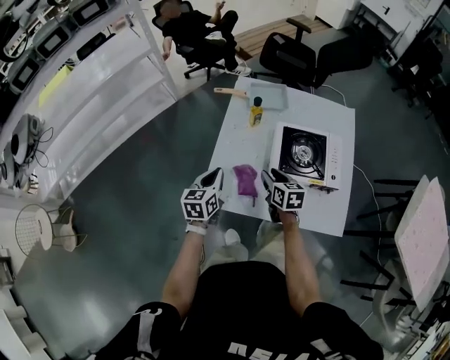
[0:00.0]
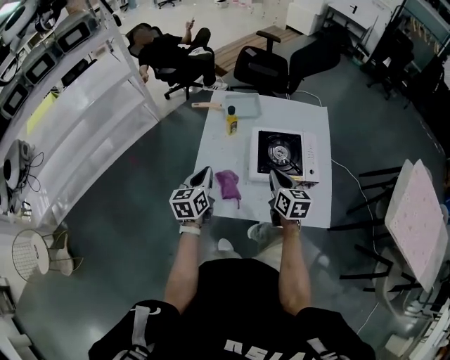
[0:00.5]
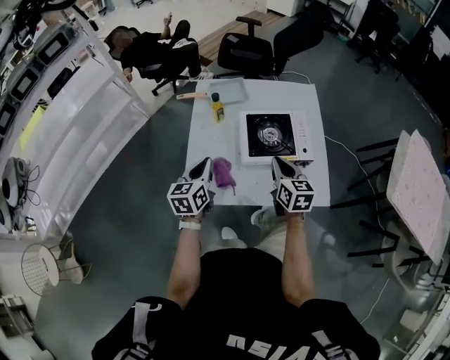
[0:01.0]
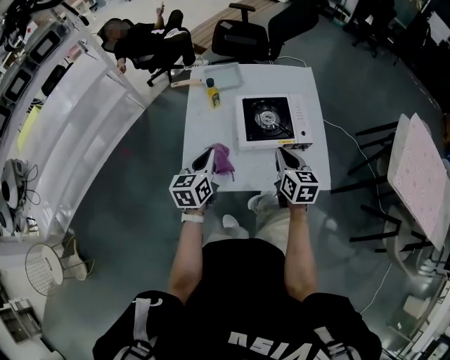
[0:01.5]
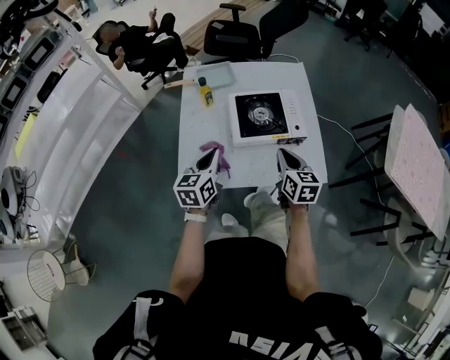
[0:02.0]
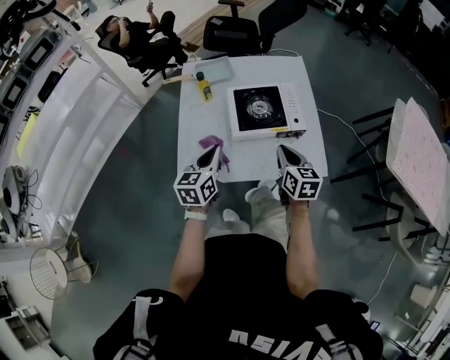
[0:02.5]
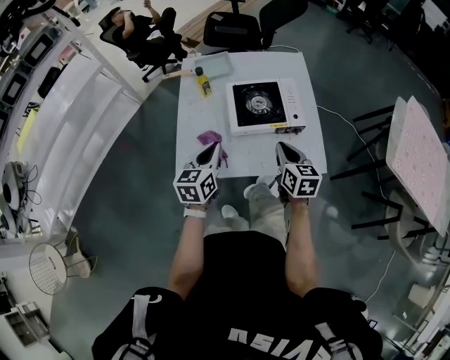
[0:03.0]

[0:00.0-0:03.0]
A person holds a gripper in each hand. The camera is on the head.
0:00.0 to 0:01.5: The right gripper moves to the right, upward and backward, roughly 20 cm, changes its angle by about 20 degrees, and closes its fingers. The left gripper heads to the right and upward, covering about 10 cm.
0:01.5 to 0:03.0: The left gripper heads to the right, covering some 5 cm. The right gripper shifts by about 5 cm.

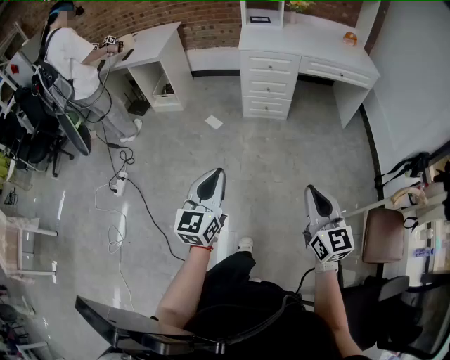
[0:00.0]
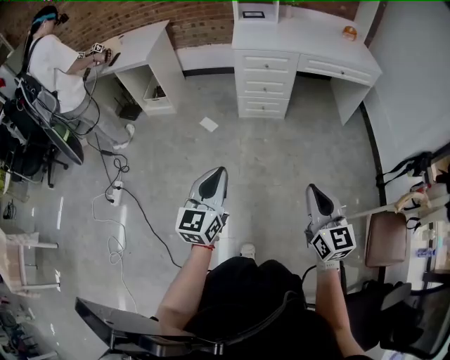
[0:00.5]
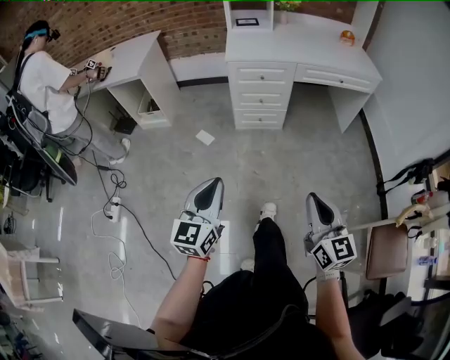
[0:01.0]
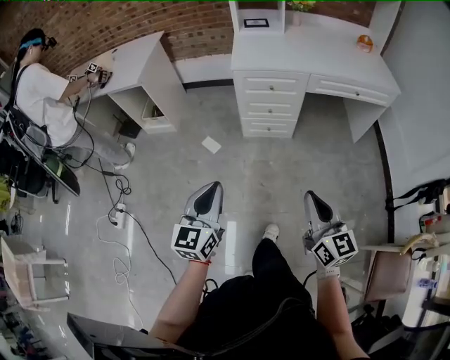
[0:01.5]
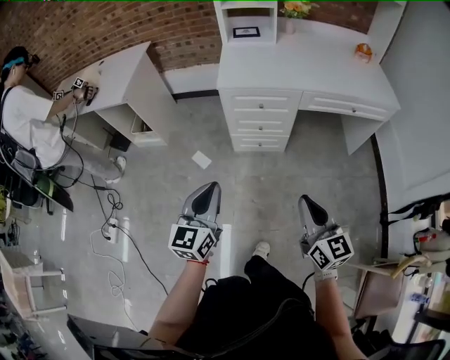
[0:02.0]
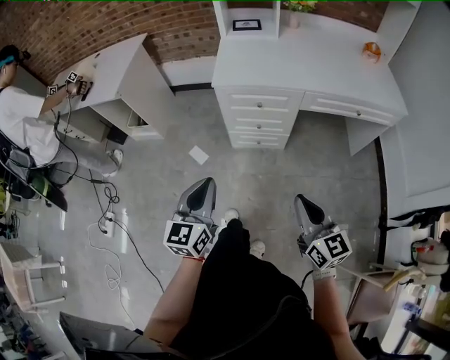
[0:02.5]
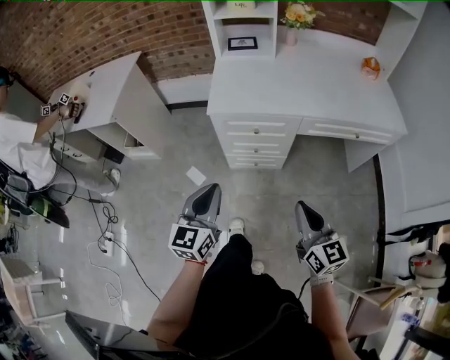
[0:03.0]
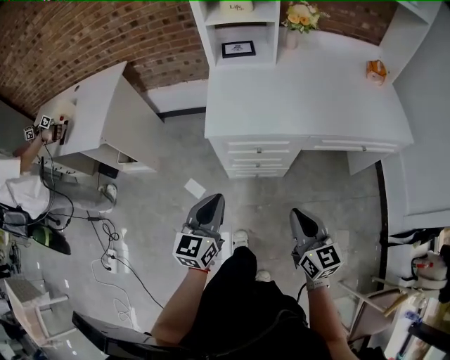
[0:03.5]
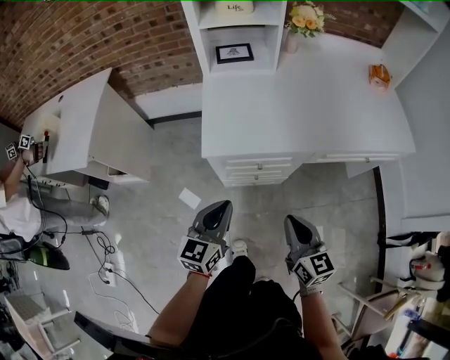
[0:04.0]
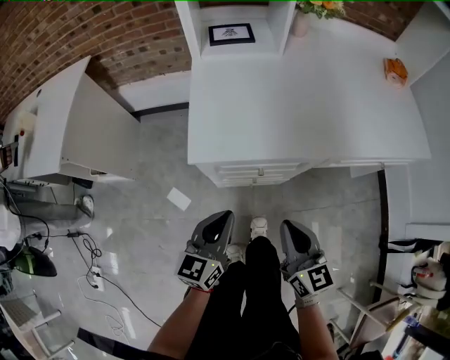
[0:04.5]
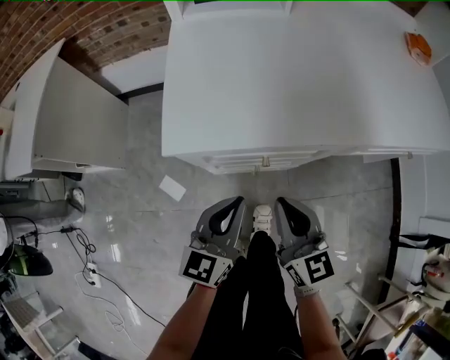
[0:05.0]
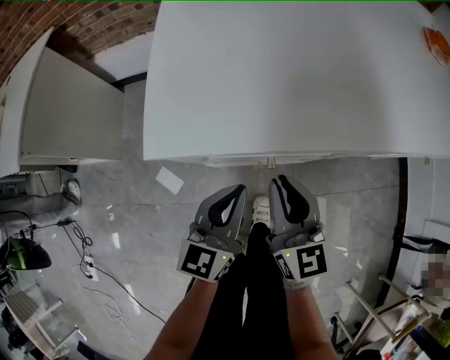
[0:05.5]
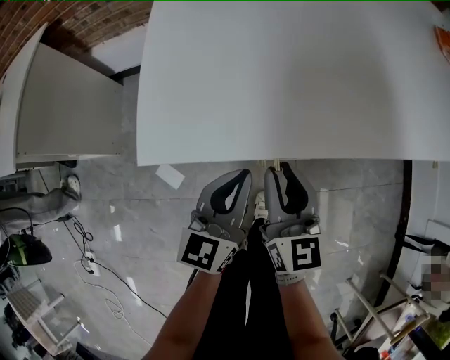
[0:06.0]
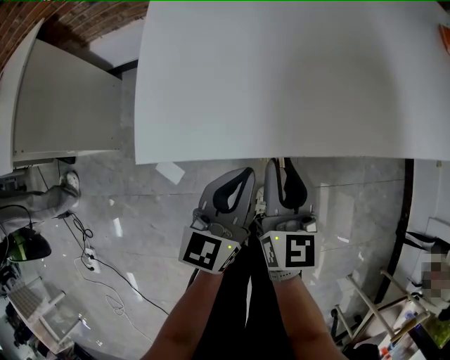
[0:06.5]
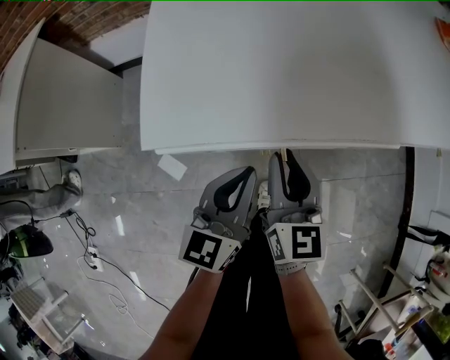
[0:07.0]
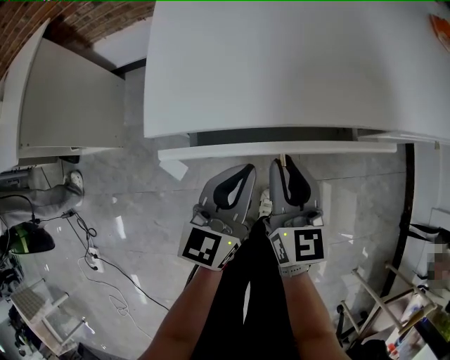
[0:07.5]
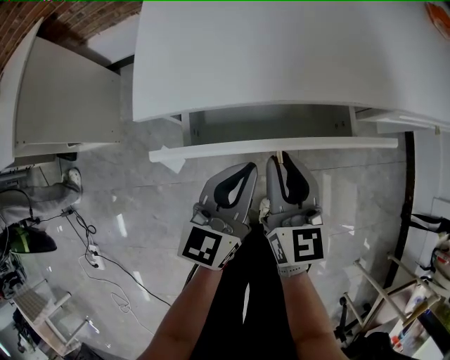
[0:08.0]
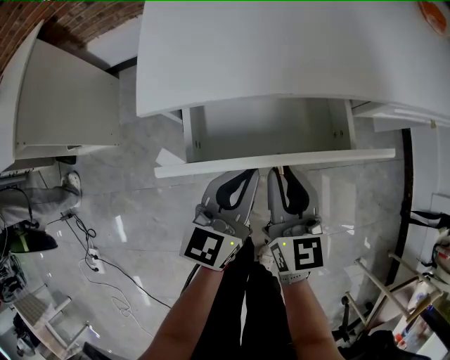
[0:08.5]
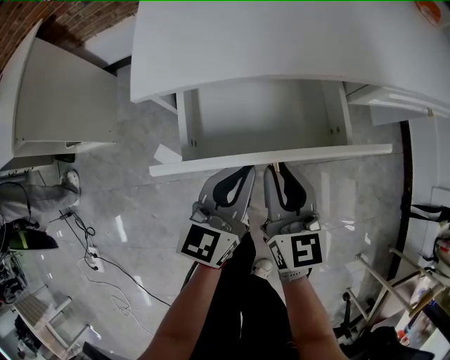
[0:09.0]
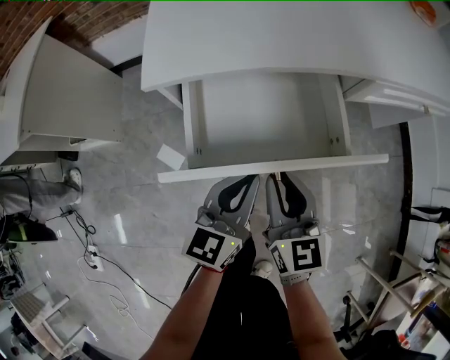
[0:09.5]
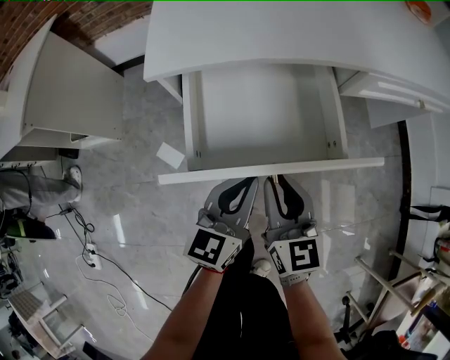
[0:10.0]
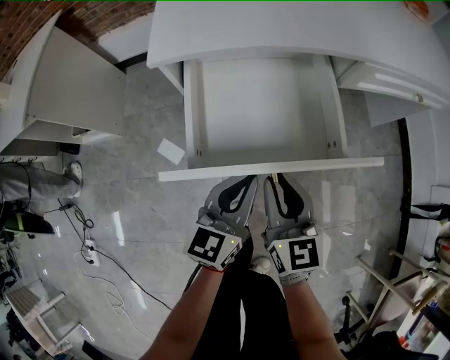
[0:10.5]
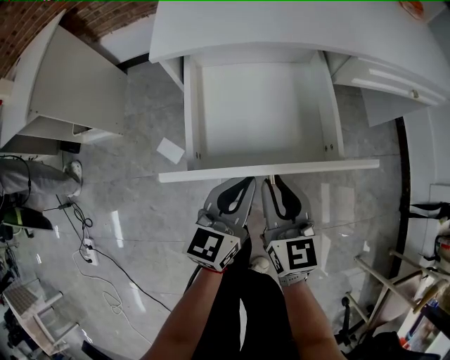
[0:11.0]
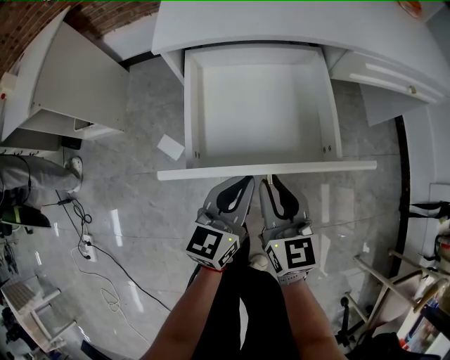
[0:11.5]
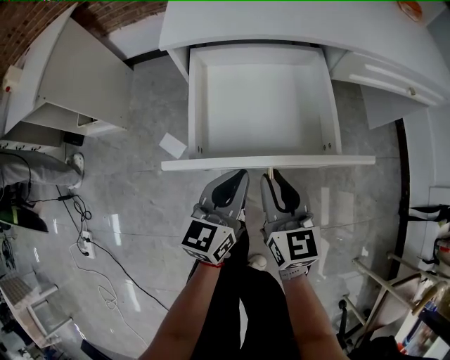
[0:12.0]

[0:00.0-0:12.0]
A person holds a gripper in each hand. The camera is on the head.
0:00.0 to 0:02.0: Both grippers are carried forward, approximately 40 cm.
0:02.0 to 0:04.0: The grippers both shift forward by roughly 30 cm.
0:04.0 to 0:06.0: The grippers both shift downward and forward by some 25 cm. The right gripper opens up.
0:06.0 to 0:08.0: The two grippers go some 5 cm backward.
0:08.0 to 0:10.0: The grippers both shift backward by roughly 10 cm.
0:10.0 to 0:12.0: The grippers both shift backward by some 5 cm.

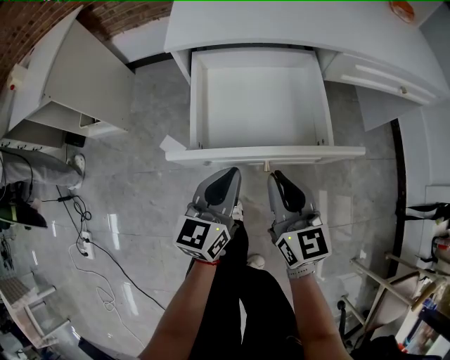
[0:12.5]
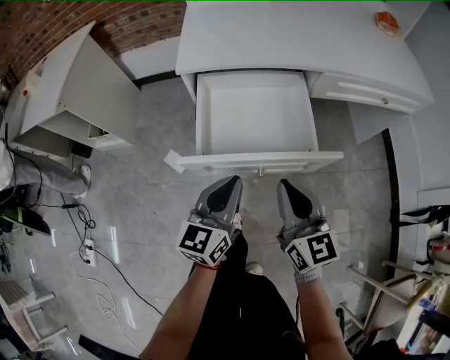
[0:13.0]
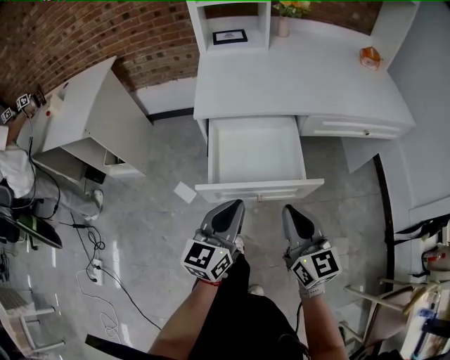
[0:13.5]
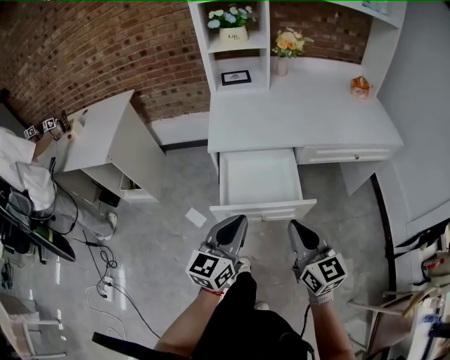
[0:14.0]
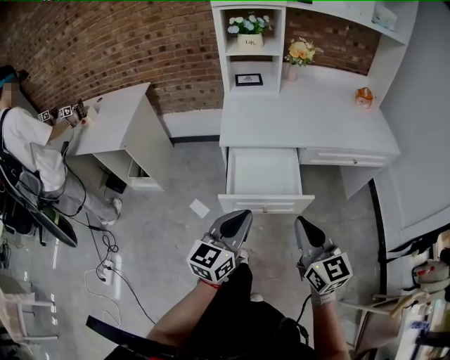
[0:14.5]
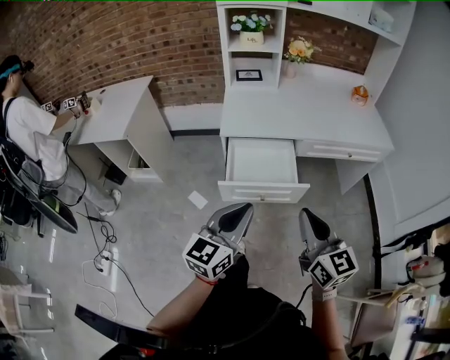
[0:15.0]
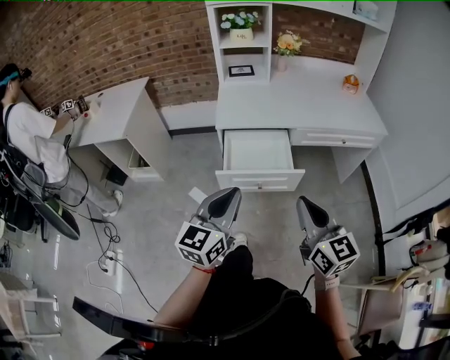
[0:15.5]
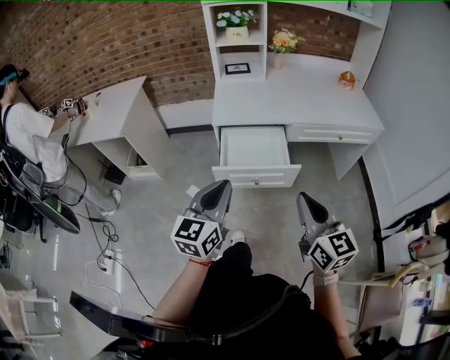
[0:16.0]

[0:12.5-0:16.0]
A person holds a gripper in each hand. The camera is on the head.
0:12.5 to 0:14.5: Both grippers travel together upward, roughly 30 cm.
0:14.5 to 0:16.0: The right gripper shifts roughly 10 cm backward. Meanwhile the left gripper goes approximately 10 cm backward and upward.

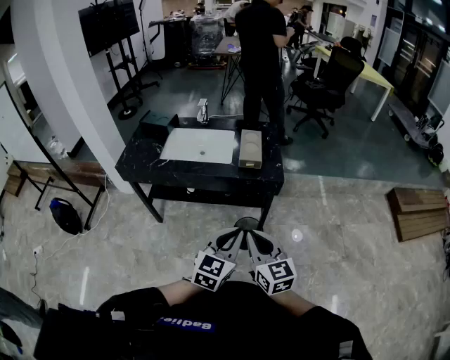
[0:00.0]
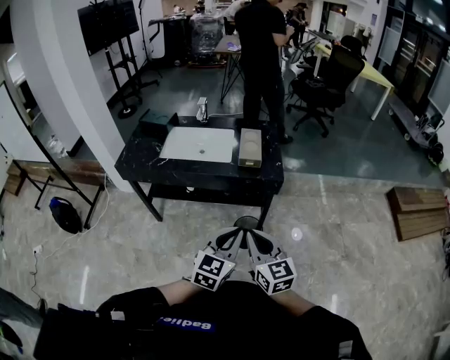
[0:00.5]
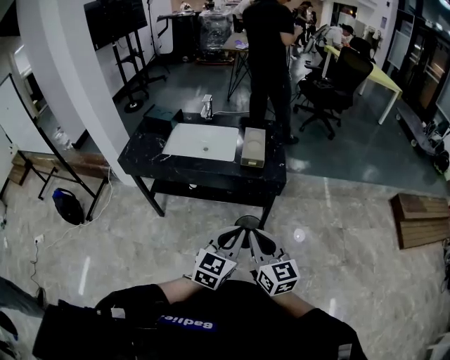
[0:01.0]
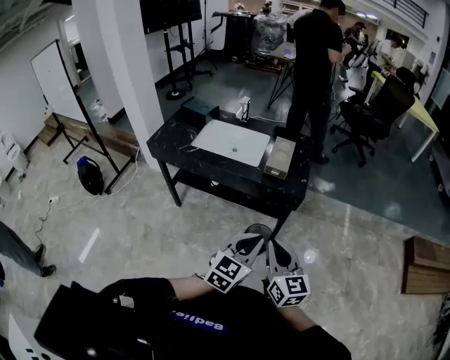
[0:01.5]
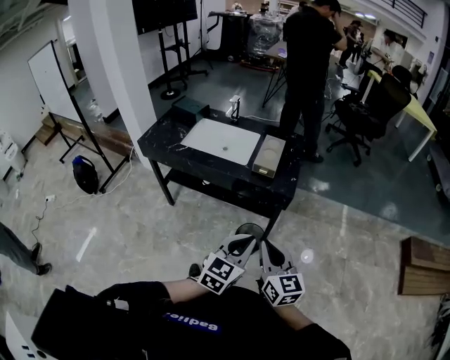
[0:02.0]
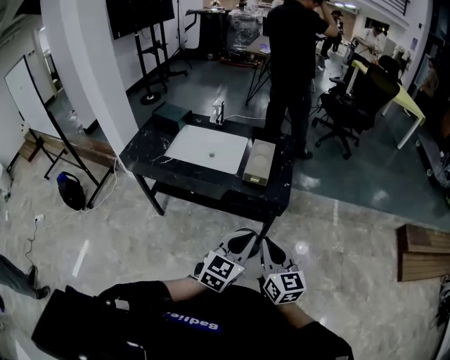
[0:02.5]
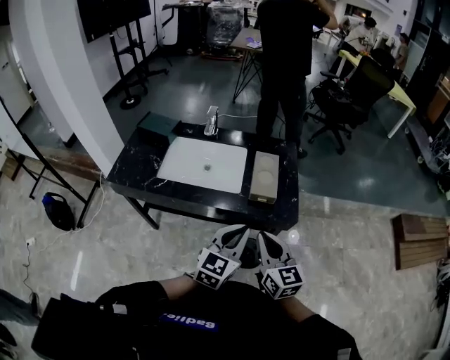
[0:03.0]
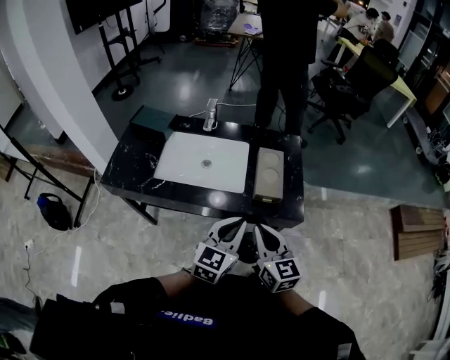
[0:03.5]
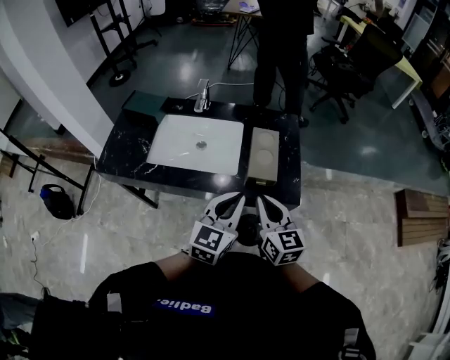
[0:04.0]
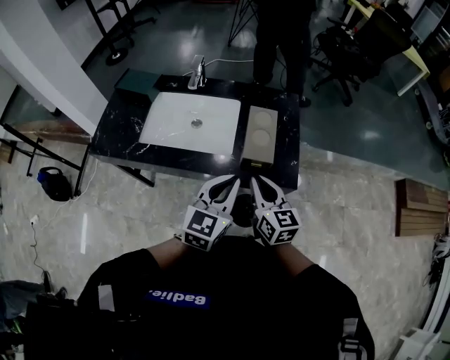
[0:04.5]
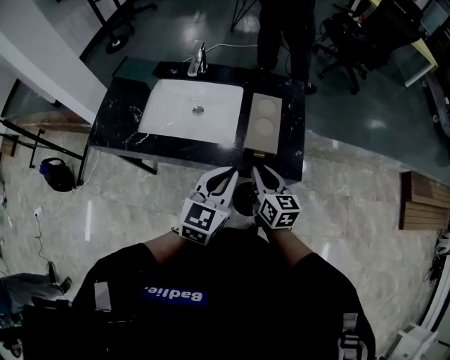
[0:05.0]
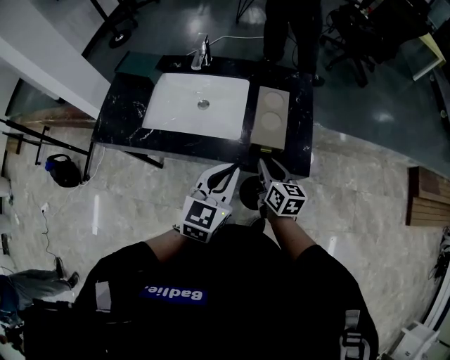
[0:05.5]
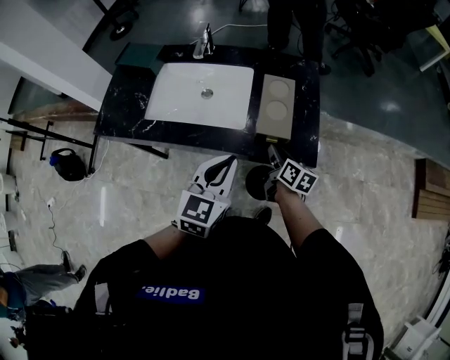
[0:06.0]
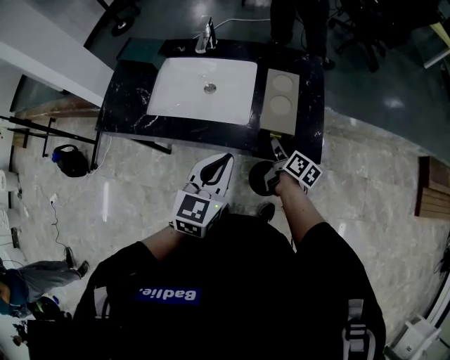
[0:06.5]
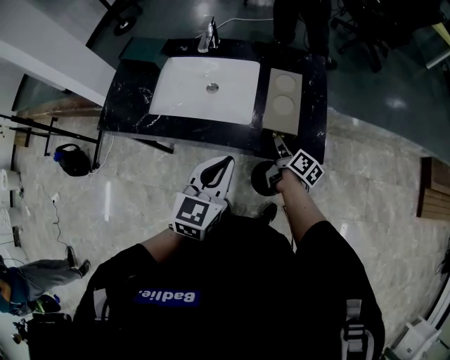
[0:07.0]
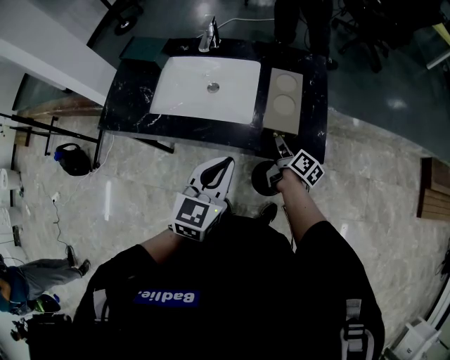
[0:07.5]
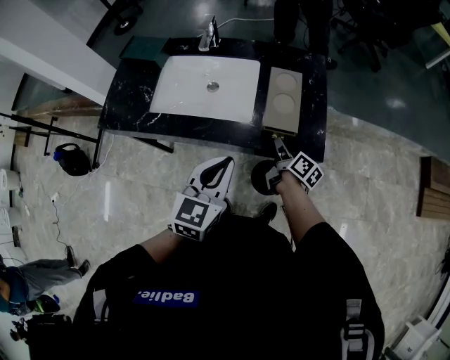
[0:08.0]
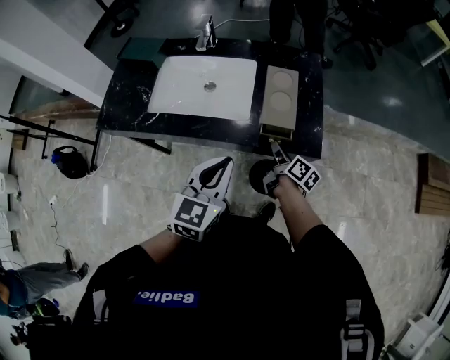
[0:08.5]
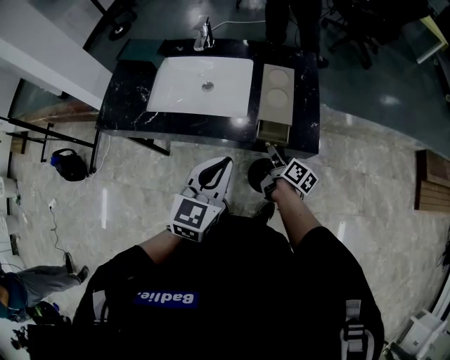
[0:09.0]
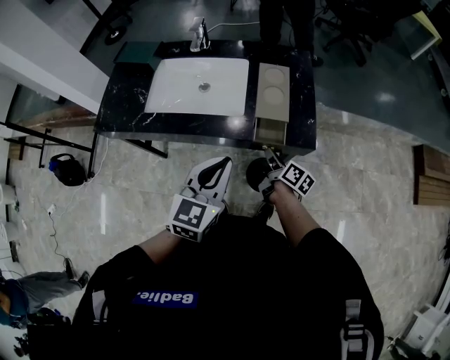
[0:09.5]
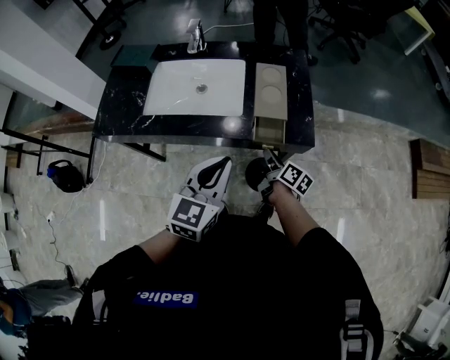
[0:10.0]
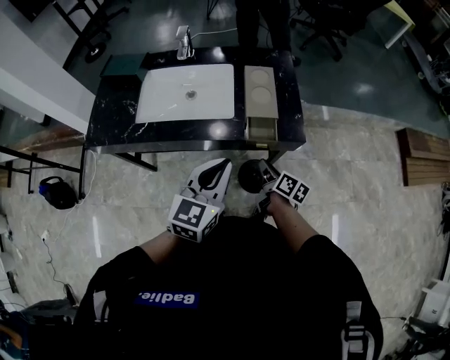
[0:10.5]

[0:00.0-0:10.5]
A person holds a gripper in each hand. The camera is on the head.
0:00.0 to 0:02.0: The two grippers go some 10 cm to the right.
0:02.0 to 0:04.0: The right gripper is displaced forward by some 30 cm. Meanwhile the left gripper travels forward and to the left by some 30 cm.
0:04.0 to 0:06.5: The left gripper shifts by roughly 5 cm; the right gripper moves downward and forward, roughly 25 cm, and rotates around the line of its fingers by some 50 degrees, clockwise from behind.
0:06.5 to 0:08.5: There are only small adjustments of the grippers.
0:08.5 to 0:10.5: The right gripper heads backward, covering about 10 cm.
